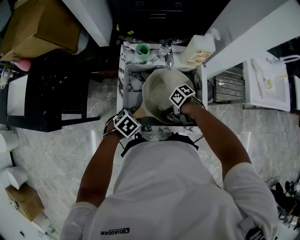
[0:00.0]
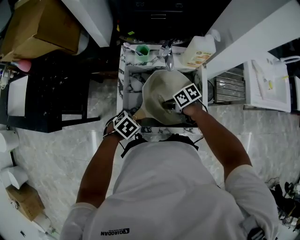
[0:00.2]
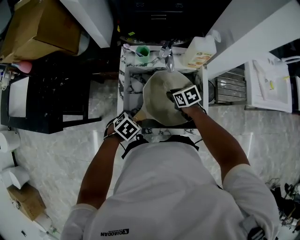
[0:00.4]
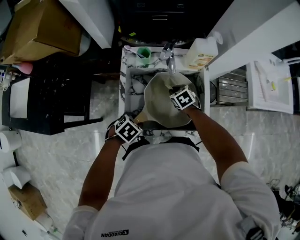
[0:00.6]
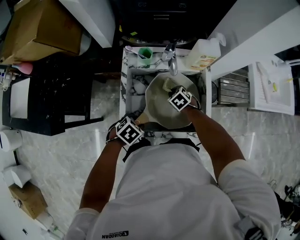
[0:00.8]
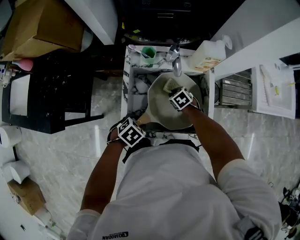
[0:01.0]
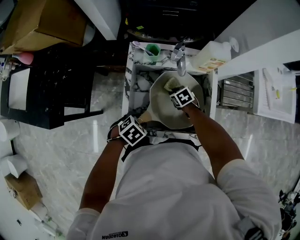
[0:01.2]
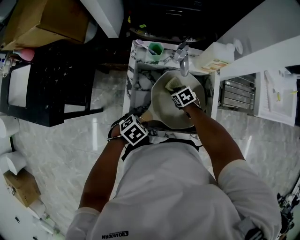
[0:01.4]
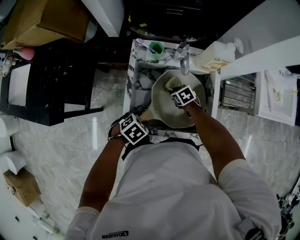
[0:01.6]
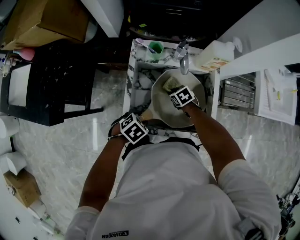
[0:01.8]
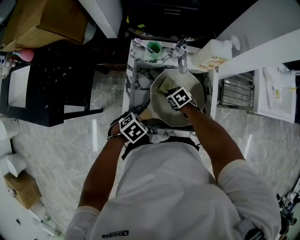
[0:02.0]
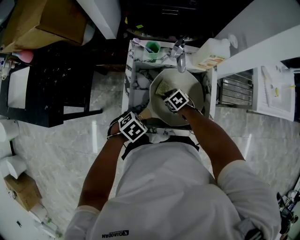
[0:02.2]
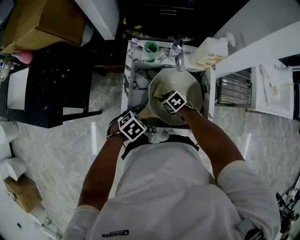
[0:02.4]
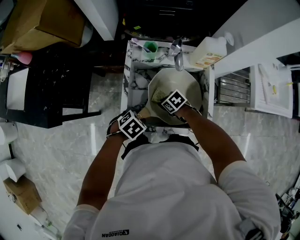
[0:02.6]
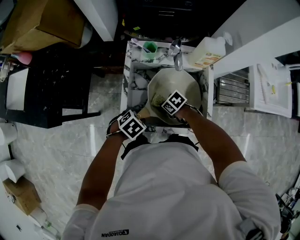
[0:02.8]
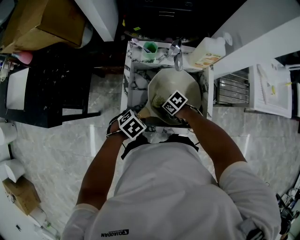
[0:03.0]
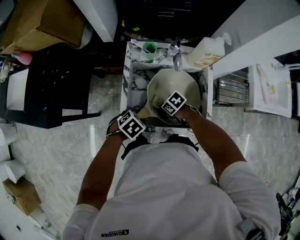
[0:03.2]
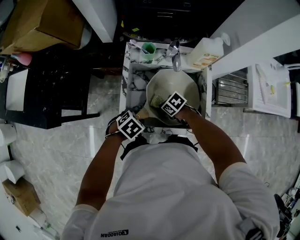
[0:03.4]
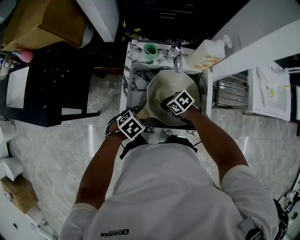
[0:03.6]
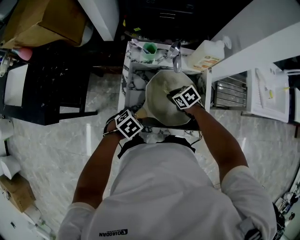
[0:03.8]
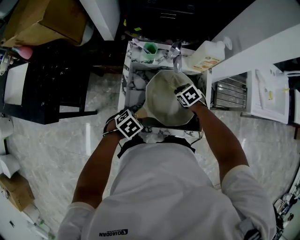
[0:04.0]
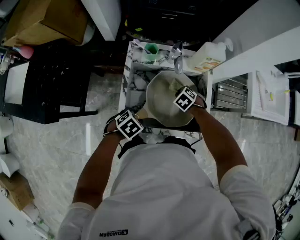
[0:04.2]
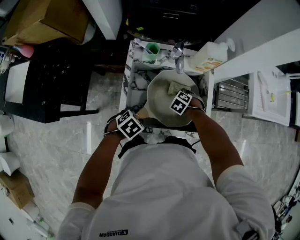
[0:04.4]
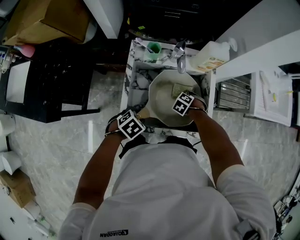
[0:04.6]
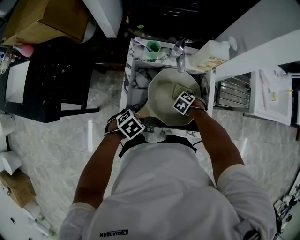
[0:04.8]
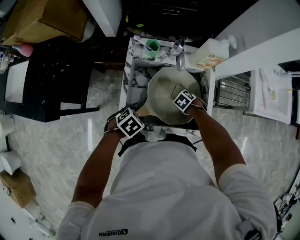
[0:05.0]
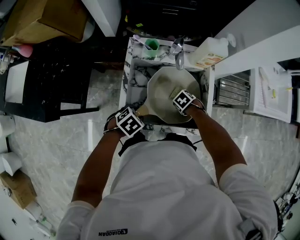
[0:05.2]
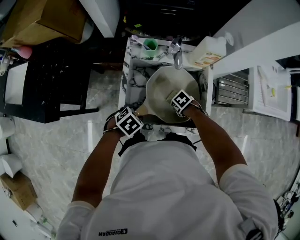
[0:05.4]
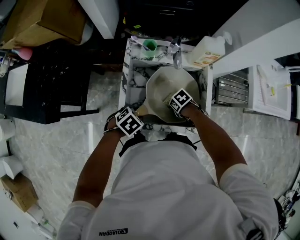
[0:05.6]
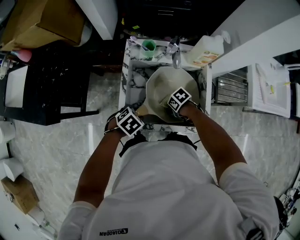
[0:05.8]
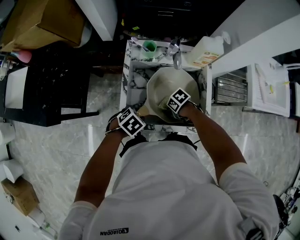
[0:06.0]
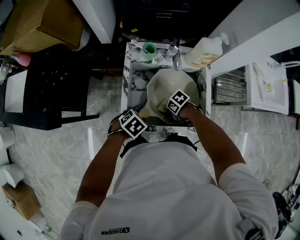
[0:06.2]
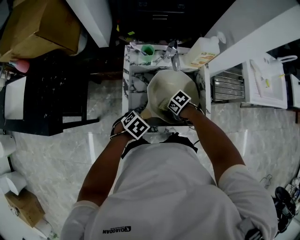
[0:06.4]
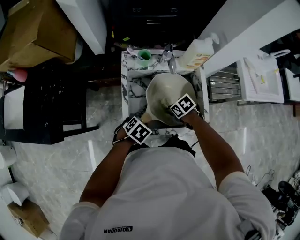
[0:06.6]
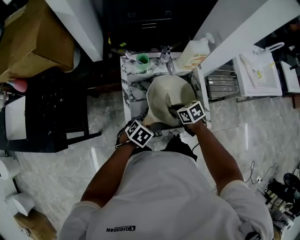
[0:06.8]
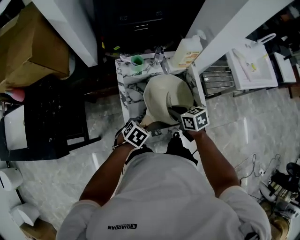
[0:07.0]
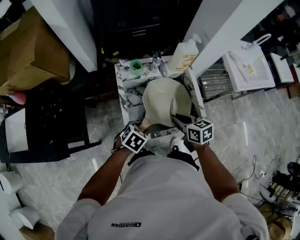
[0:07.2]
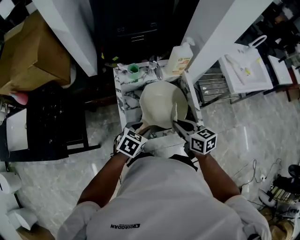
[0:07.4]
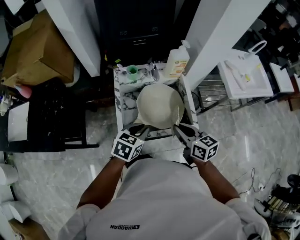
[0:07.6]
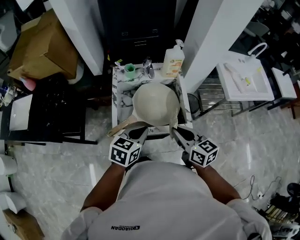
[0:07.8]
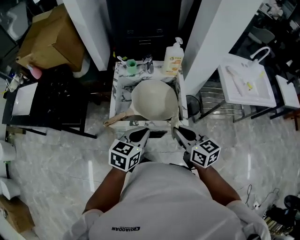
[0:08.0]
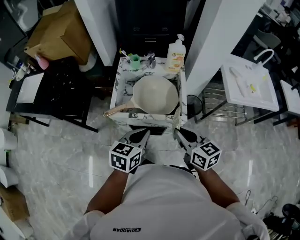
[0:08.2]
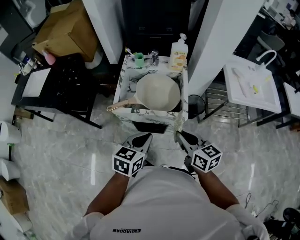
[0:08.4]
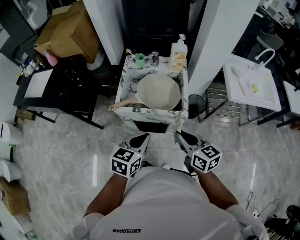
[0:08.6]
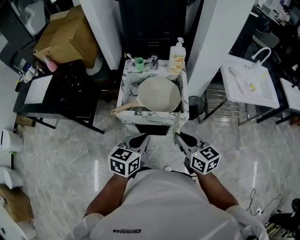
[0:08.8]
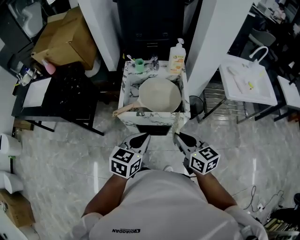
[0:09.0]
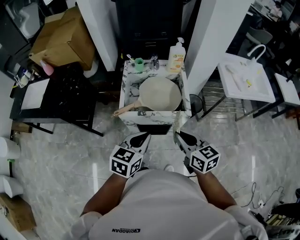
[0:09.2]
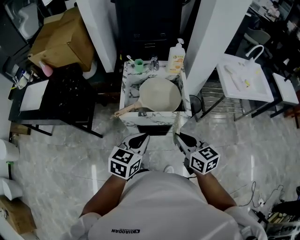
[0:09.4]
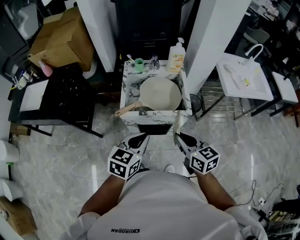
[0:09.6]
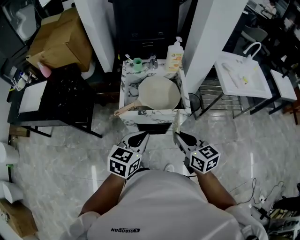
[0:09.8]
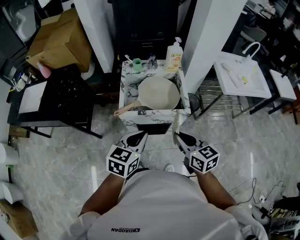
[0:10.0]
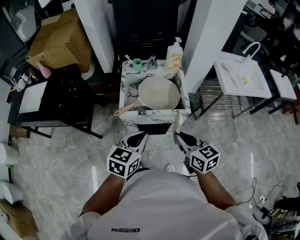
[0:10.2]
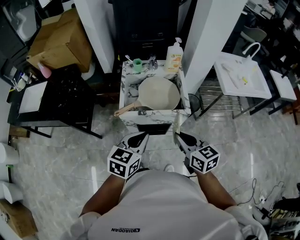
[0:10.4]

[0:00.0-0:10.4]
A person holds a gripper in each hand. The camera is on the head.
0:00.0 to 0:01.4: The right gripper moves about 15 cm, and changes its angle by roughly 50 degrees.
0:01.4 to 0:03.0: The right gripper shifts by approximately 15 cm, and changes its angle by roughly 20 degrees.
0:03.0 to 0:04.4: The right gripper shifts by about 15 cm, and changes its angle by about 50 degrees.
0:04.4 to 0:06.0: The right gripper ends up roughly 15 cm from where it was, and rotates about 50 degrees.
0:06.0 to 0:07.4: The right gripper is displaced upward by about 25 cm, and rotates about 70 degrees. The left gripper moves upward, some 10 cm, and rotates about 20 degrees.
0:07.4 to 0:09.0: Both grippers move backward and upward, approximately 25 cm. The left gripper swivels approximately 30 degrees, and closes.
0:09.0 to 0:10.4: The grippers stay close to where they were, moving slightly.

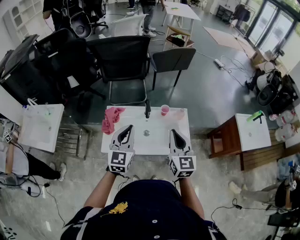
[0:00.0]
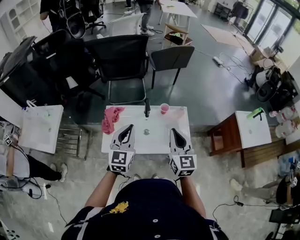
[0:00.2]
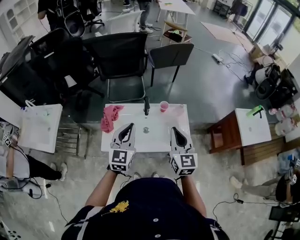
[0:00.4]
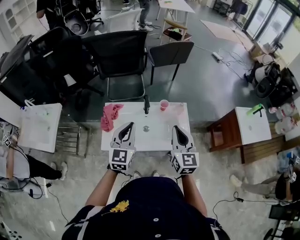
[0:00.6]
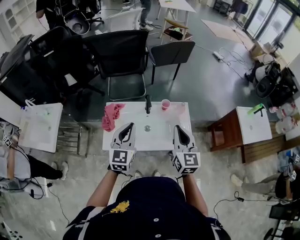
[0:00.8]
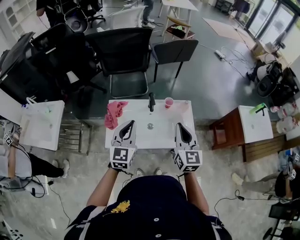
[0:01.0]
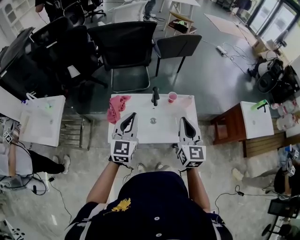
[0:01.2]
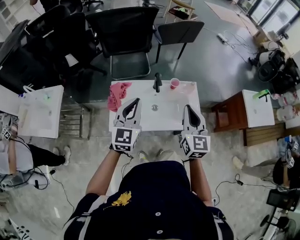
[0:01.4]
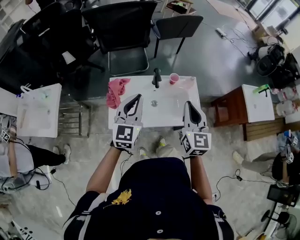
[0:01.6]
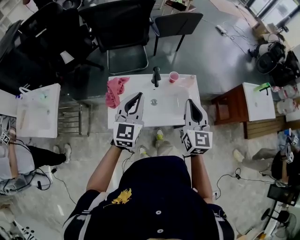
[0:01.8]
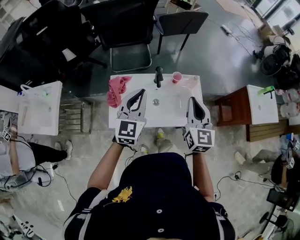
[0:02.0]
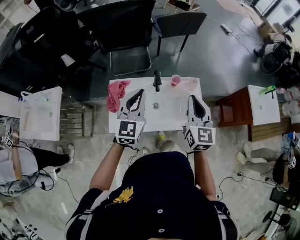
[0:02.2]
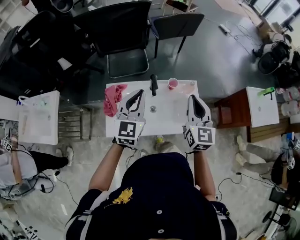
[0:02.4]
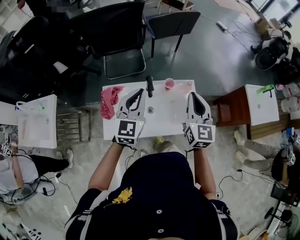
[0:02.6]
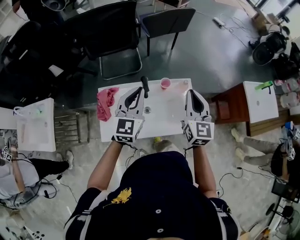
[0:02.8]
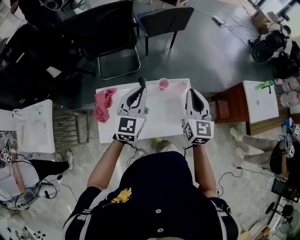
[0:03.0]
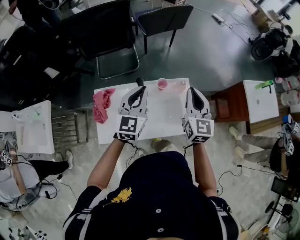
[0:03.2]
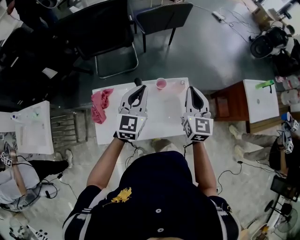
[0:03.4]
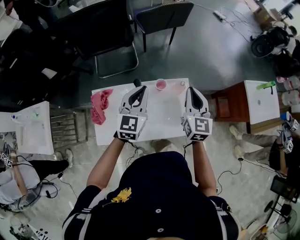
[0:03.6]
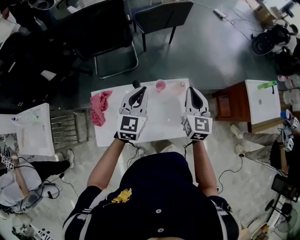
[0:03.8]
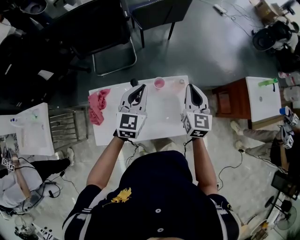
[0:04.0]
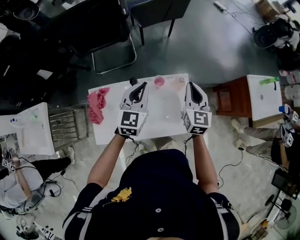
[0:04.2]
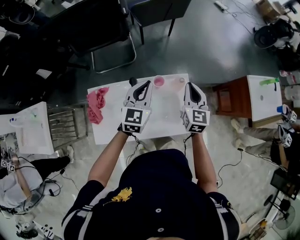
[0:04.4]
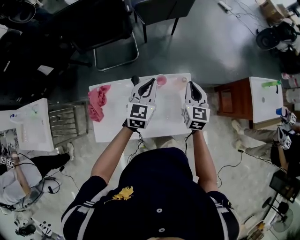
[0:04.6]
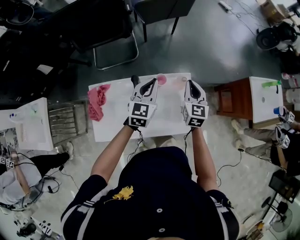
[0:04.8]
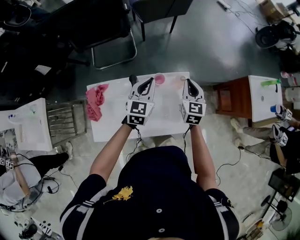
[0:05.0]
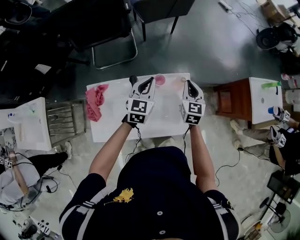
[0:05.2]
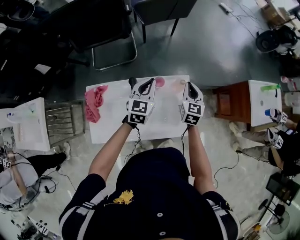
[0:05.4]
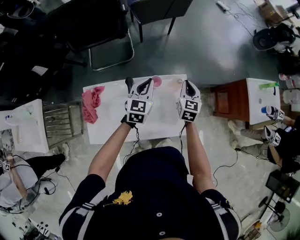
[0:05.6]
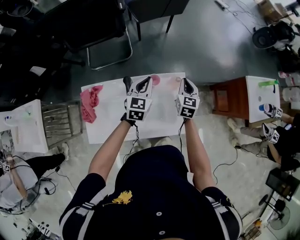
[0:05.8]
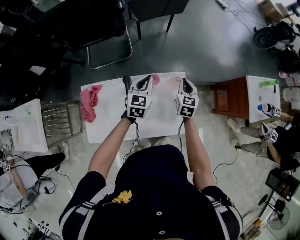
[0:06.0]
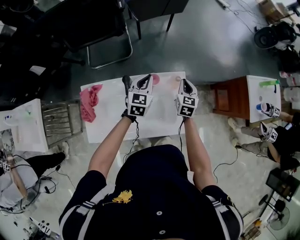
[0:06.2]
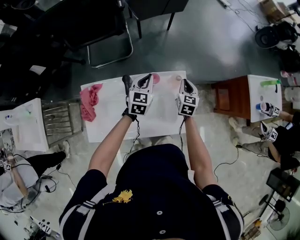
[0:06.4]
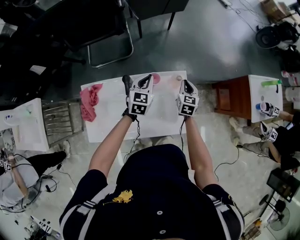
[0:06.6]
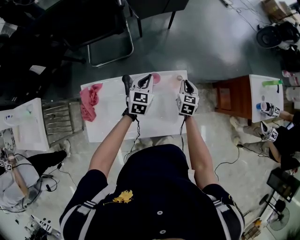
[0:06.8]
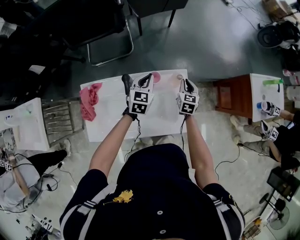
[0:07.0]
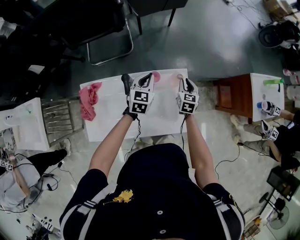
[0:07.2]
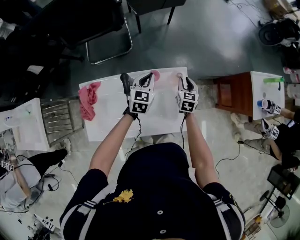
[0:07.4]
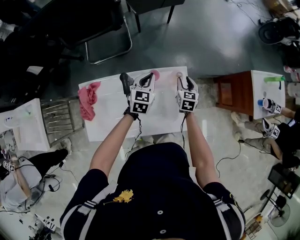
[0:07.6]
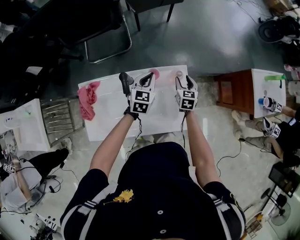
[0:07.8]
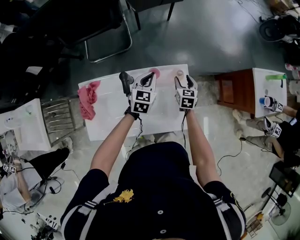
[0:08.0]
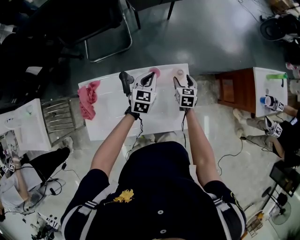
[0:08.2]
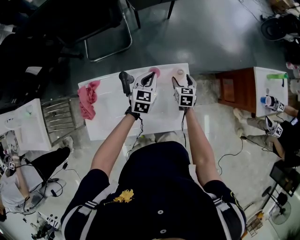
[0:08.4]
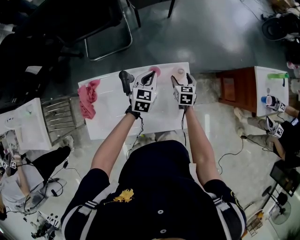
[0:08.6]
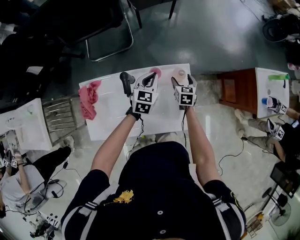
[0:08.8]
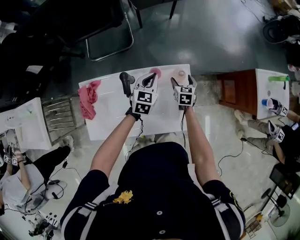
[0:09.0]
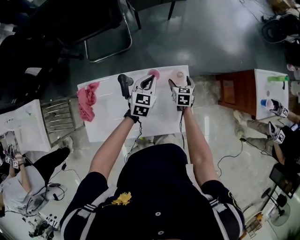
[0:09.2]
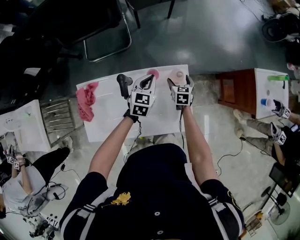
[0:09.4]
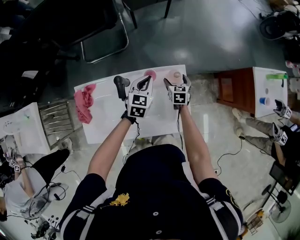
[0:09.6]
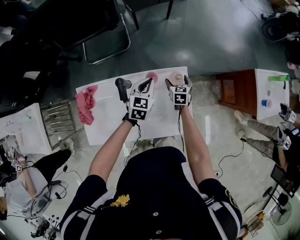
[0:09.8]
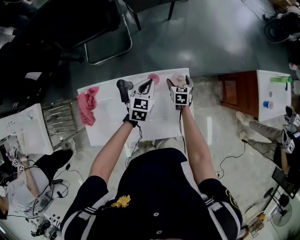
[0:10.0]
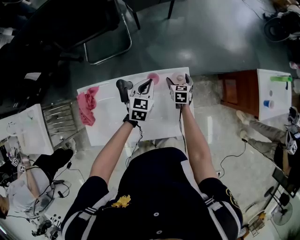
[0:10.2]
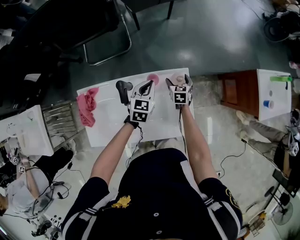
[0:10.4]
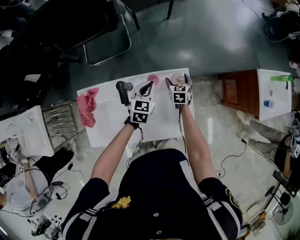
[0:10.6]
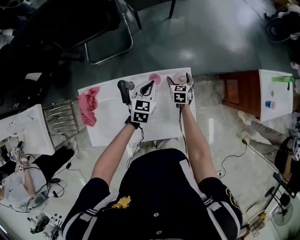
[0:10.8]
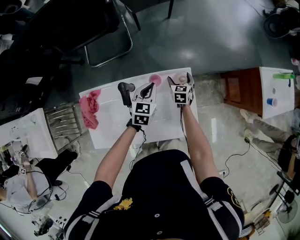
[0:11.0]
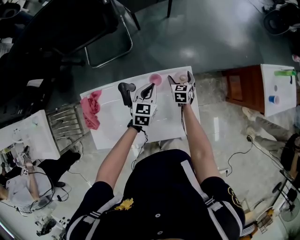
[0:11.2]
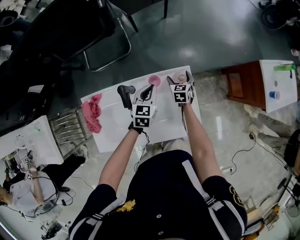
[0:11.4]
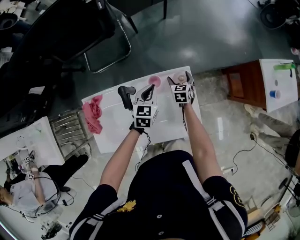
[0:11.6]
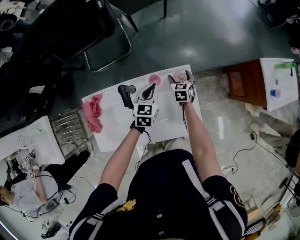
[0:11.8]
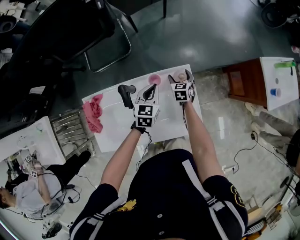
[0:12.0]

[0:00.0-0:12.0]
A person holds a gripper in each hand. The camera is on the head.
0:00.0 to 0:01.6: The grippers move only a little.
0:01.6 to 0:03.0: Both grippers travel together forward and to the right, about 20 cm.
0:03.0 to 0:04.4: The left gripper heads forward, downward and to the right, covering roughly 15 cm, while the right gripper goes about 15 cm downward and forward.
0:04.4 to 0:06.0: The grippers both shift downward and forward by some 15 cm.
0:06.0 to 0:07.6: The right gripper heads downward, covering some 10 cm, and opens up; the left gripper shifts about 5 cm downward.
0:07.6 to 0:09.0: The right gripper heads downward, covering roughly 5 cm, and opens up.
0:09.0 to 0:10.4: The right gripper moves roughly 5 cm.
0:10.4 to 0:12.0: The grippers make only small movements.

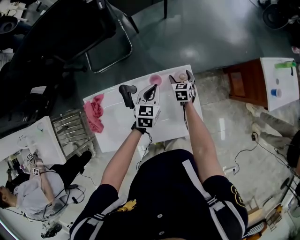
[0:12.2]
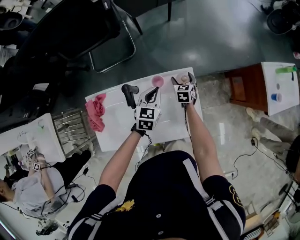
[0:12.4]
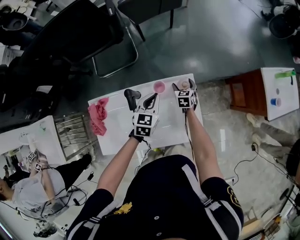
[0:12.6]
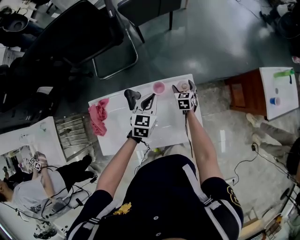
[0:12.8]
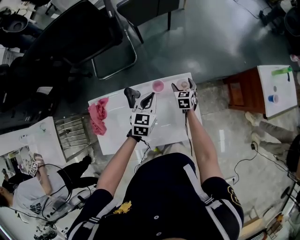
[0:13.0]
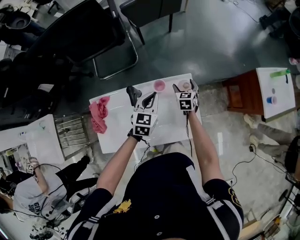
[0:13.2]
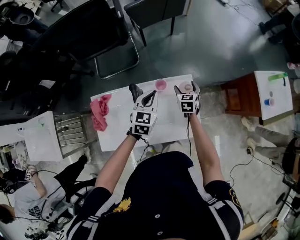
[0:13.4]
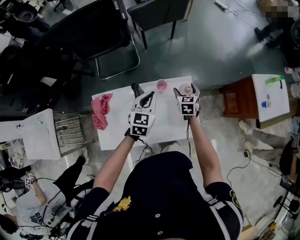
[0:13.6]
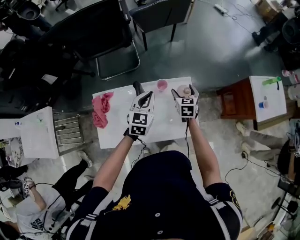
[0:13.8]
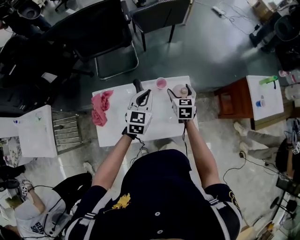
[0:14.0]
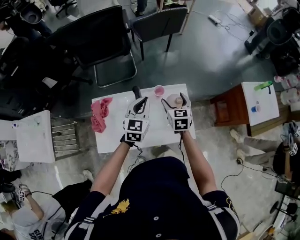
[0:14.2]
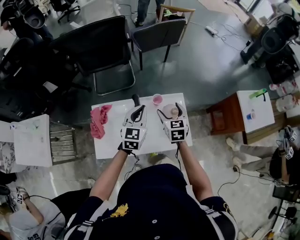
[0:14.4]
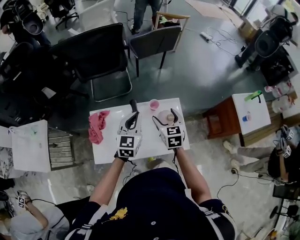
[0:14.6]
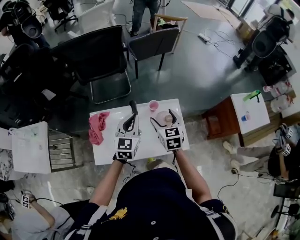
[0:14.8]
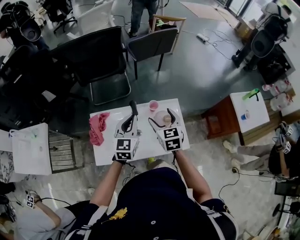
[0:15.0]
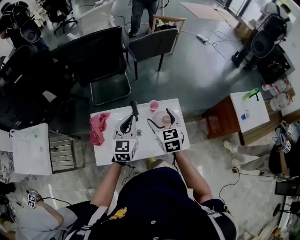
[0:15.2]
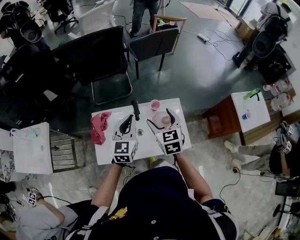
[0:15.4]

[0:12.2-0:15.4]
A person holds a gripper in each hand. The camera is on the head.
0:12.2 to 0:13.8: The two grippers go roughly 15 cm upward and backward.
0:13.8 to 0:15.4: The left gripper heads upward, to the left and backward, covering about 15 cm; the right gripper travels upward, to the left and backward by approximately 30 cm.
